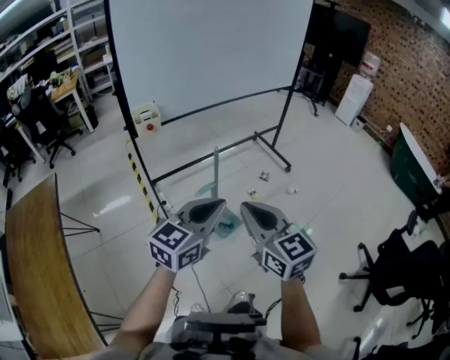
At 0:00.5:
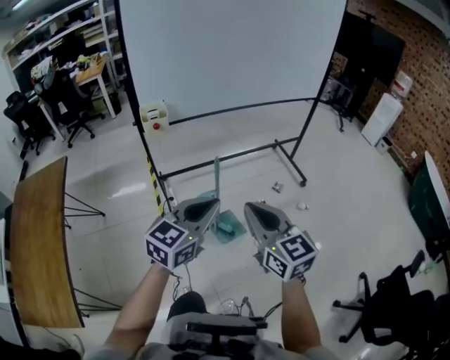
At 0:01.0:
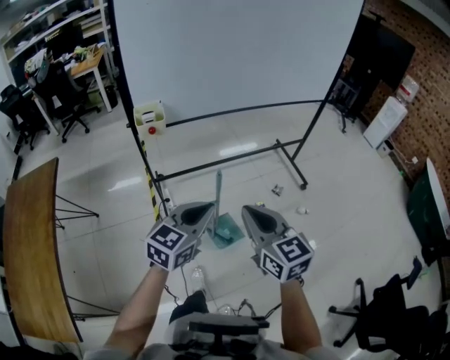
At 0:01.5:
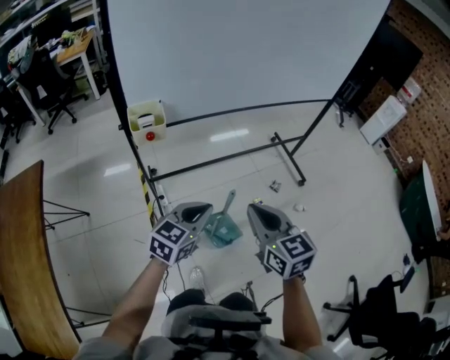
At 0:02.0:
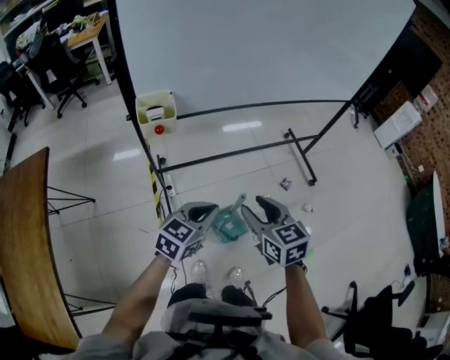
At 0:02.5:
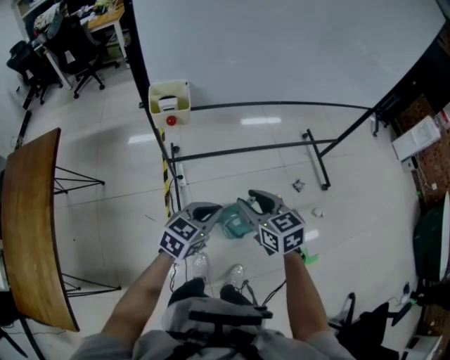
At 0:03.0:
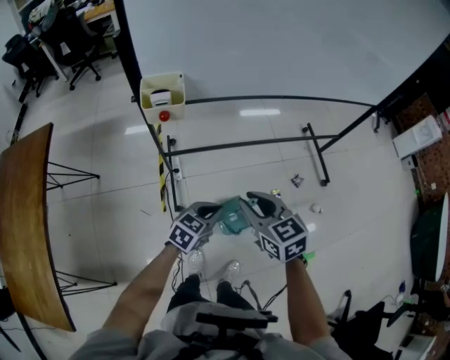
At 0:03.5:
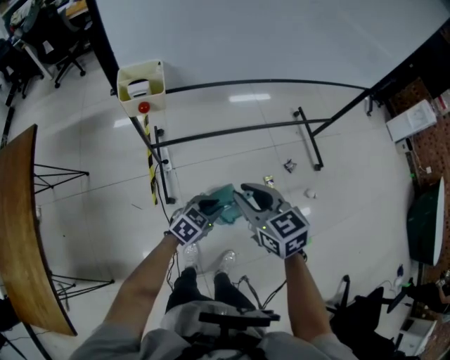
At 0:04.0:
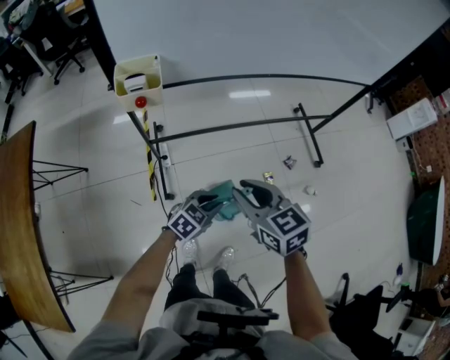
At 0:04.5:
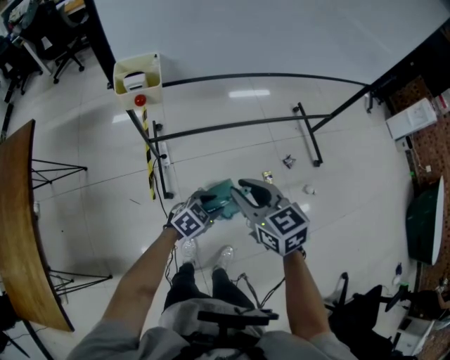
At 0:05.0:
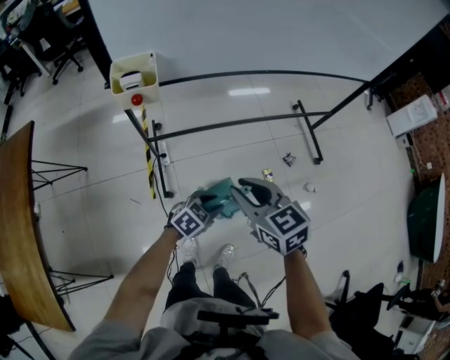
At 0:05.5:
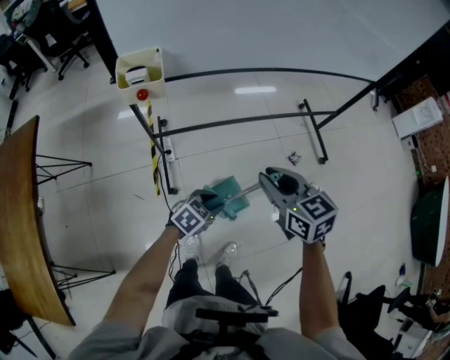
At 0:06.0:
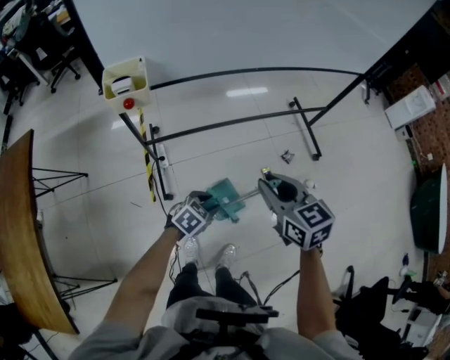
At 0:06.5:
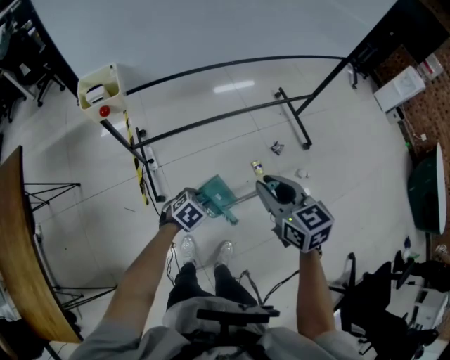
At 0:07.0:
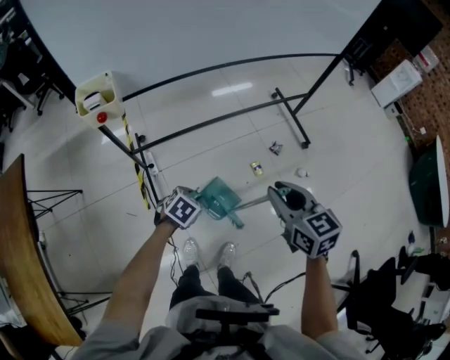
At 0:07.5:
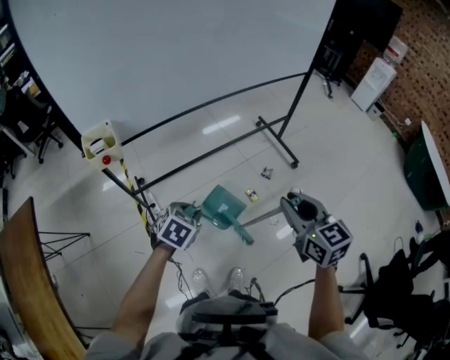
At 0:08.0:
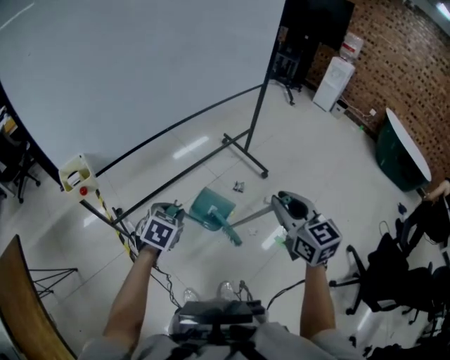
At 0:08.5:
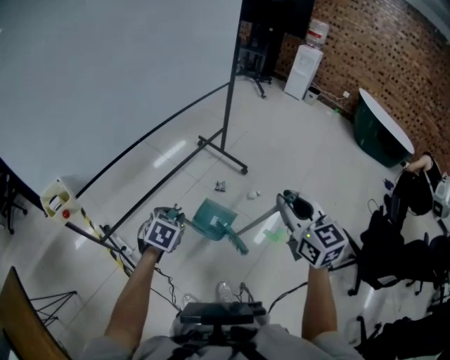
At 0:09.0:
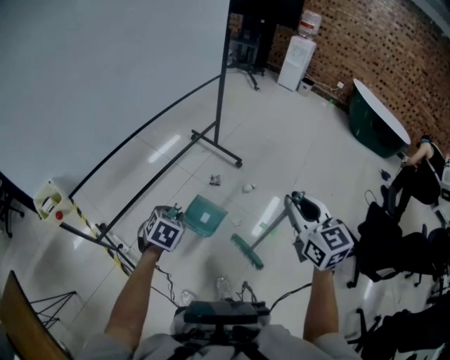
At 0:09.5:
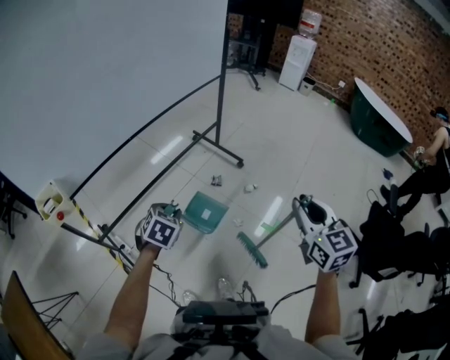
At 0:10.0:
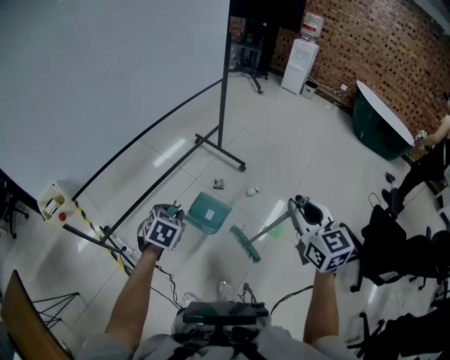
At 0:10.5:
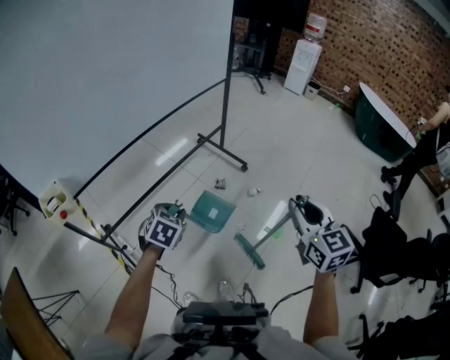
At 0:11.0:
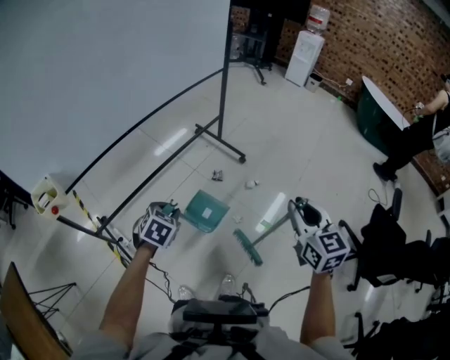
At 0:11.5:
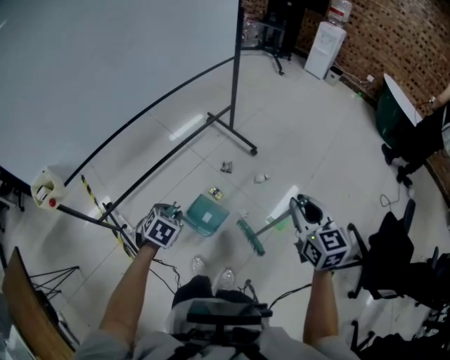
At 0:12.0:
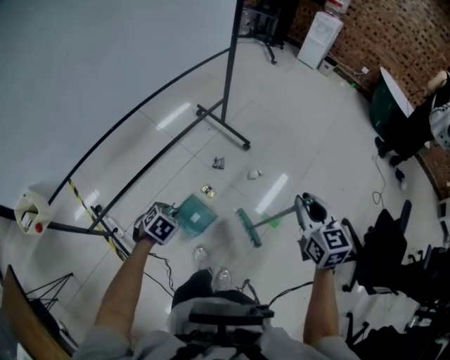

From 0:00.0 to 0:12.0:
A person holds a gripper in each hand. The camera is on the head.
From 0:00.0 to 0:02.0: The two grippers go some 30 cm forward and downward. The right gripper rotates roughly 20 degrees, and opens. Meanwhile the left gripper turns by about 20 degrees.
From 0:02.0 to 0:04.0: The left gripper travels downward by some 20 cm.
From 0:04.0 to 0:06.0: The right gripper shifts about 10 cm to the right.
From 0:06.0 to 0:08.0: The right gripper shifts roughly 25 cm to the right and upward, and rotates roughly 30 degrees, while the left gripper heads upward, covering roughly 20 cm.
From 0:08.0 to 0:10.0: The two grippers go approximately 10 cm to the right.
From 0:10.0 to 0:12.0: The left gripper moves downward and forward, approximately 15 cm, while the right gripper is displaced forward, downward and to the right by some 15 cm.

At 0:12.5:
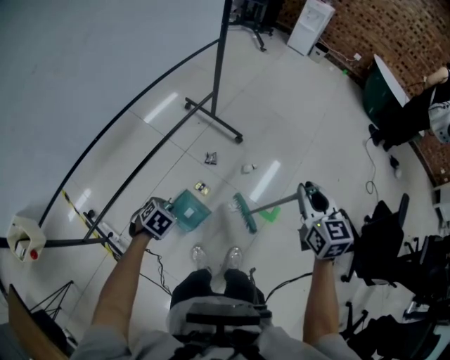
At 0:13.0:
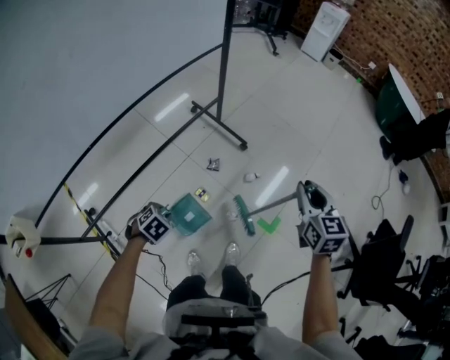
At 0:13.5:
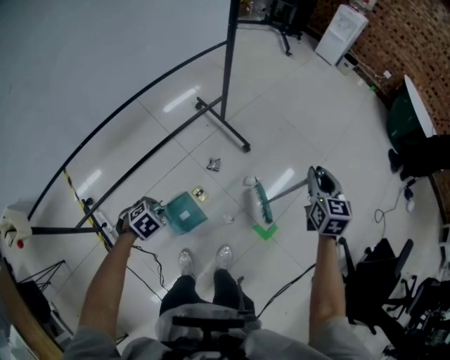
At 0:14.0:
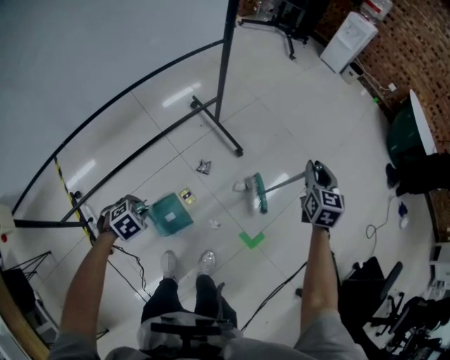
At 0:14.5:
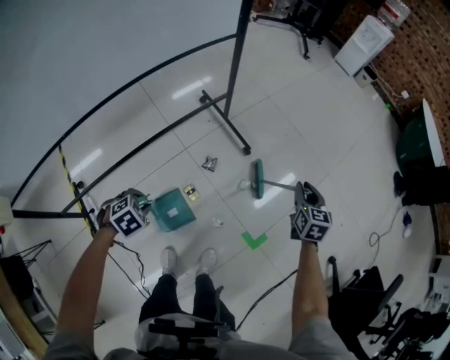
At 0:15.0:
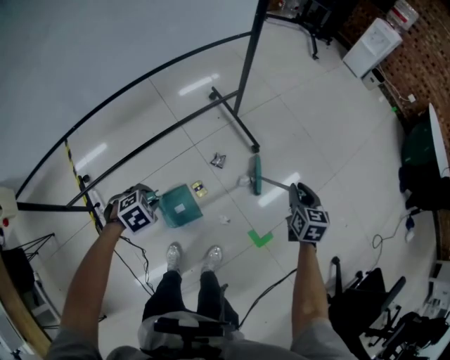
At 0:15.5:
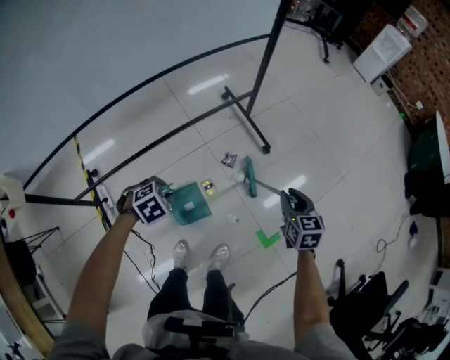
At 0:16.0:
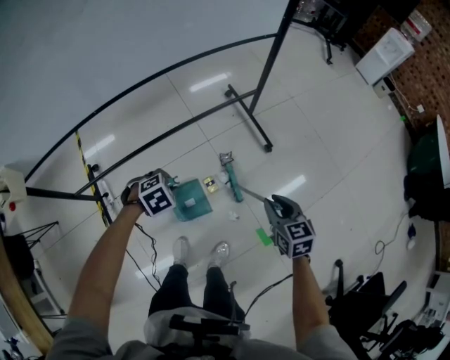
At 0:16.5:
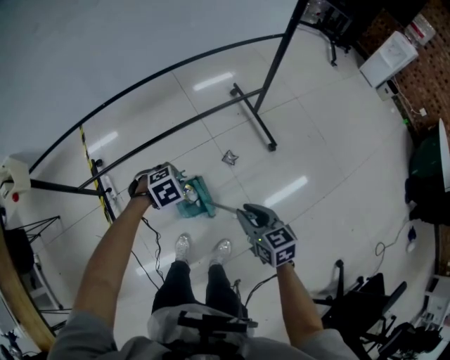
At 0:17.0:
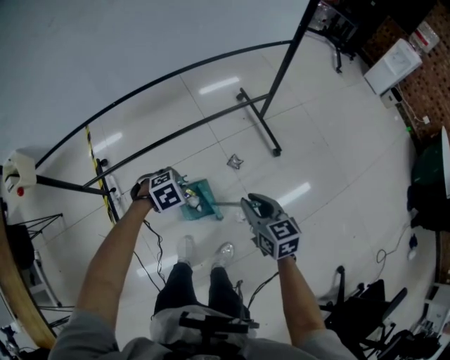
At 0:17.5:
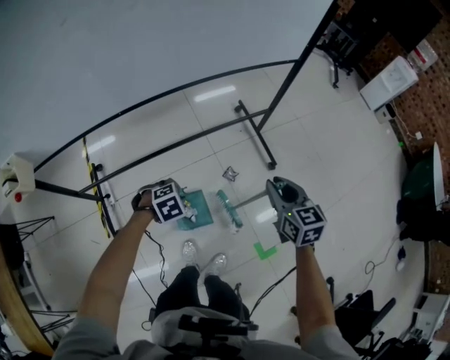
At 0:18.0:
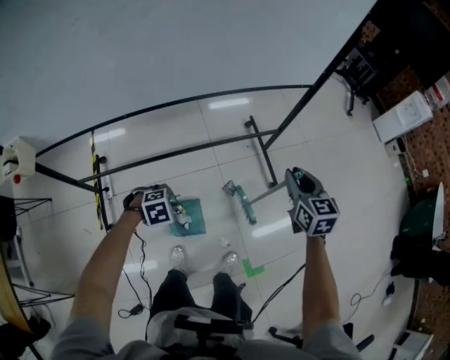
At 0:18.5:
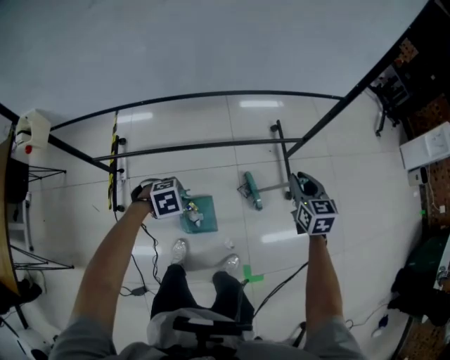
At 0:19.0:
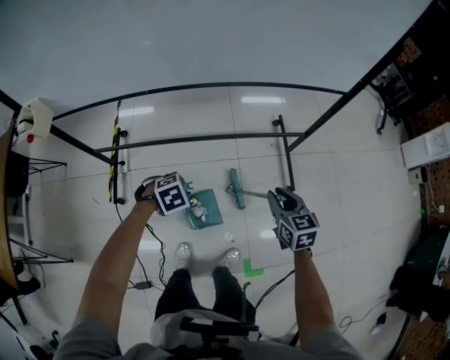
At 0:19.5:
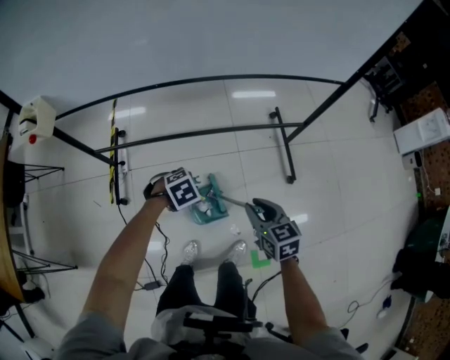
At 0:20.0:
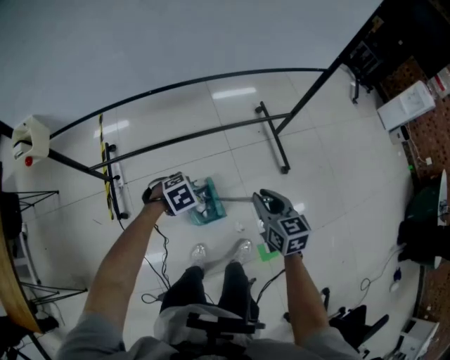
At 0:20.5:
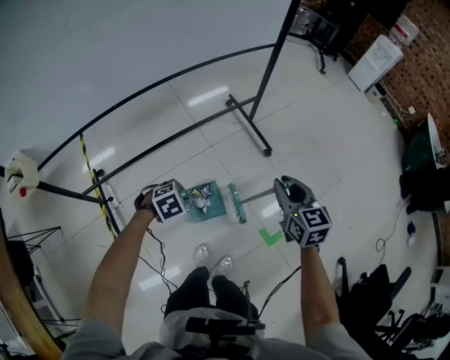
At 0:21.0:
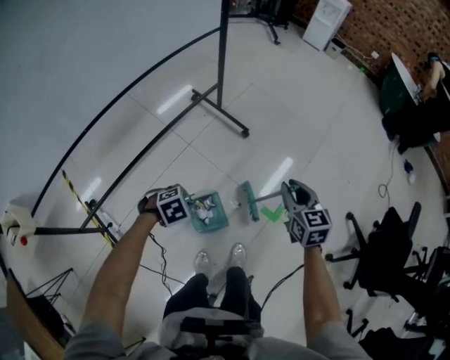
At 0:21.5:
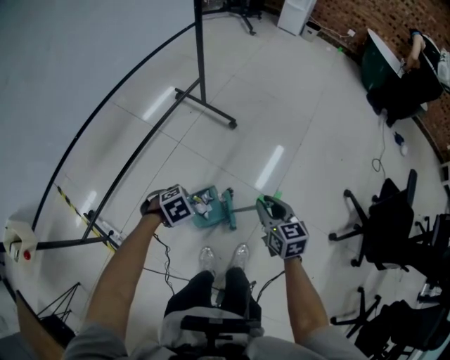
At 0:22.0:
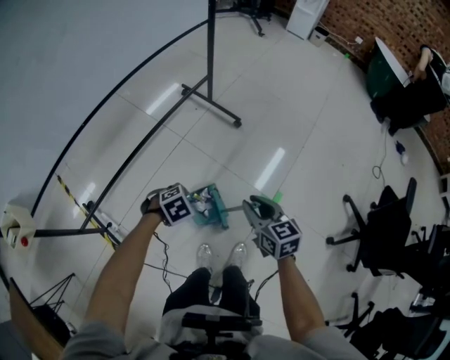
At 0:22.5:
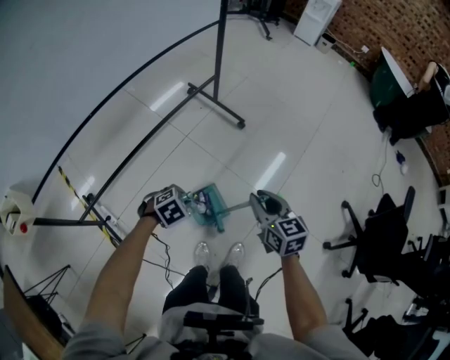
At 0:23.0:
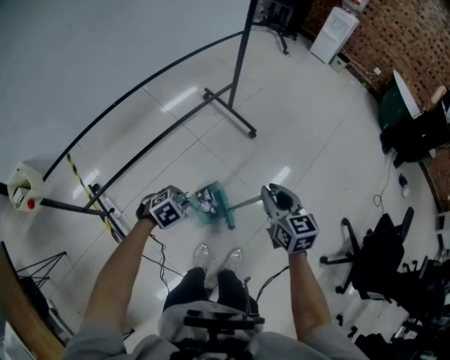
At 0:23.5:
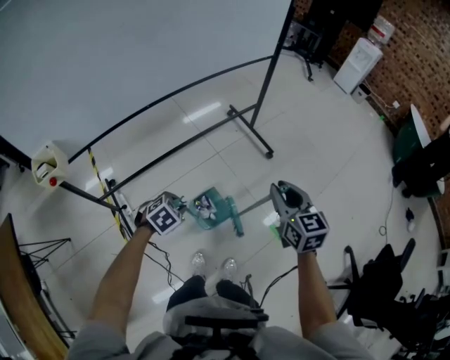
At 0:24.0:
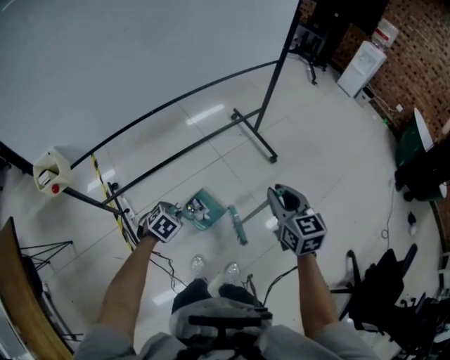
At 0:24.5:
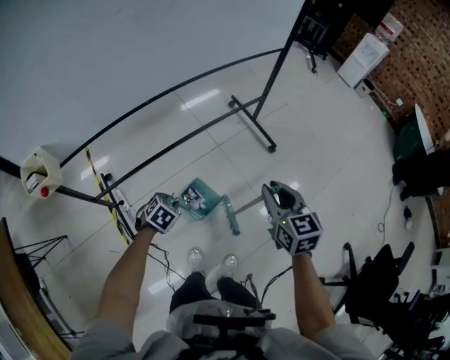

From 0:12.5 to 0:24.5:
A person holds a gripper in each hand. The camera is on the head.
From 0:12.5 to 0:14.5: The left gripper moves some 10 cm; the right gripper shifts by about 35 cm.
From 0:14.5 to 0:16.5: The right gripper ends up about 35 cm from where it was, and swivels some 40 degrees.
From 0:16.5 to 0:18.5: The right gripper moves about 10 cm upward and comes back.
From 0:18.5 to 0:20.5: The left gripper shifts by some 10 cm; the right gripper moves about 25 cm.
From 0:20.5 to 0:22.5: The left gripper changes place by some 10 cm. The right gripper shifts by roughly 20 cm.
From 0:22.5 to 0:24.5: The left gripper ends up roughly 15 cm from where it was, and changes its angle by about 40 degrees. The right gripper changes place by some 15 cm.

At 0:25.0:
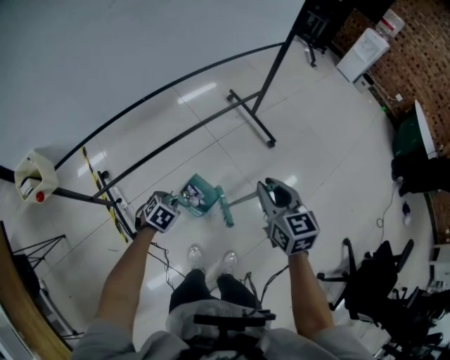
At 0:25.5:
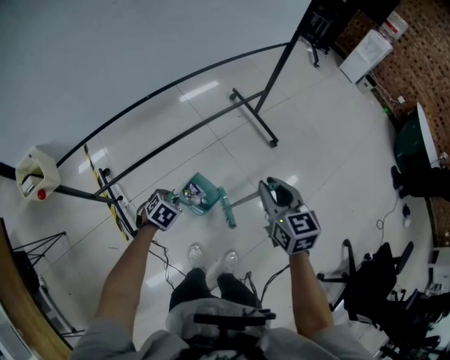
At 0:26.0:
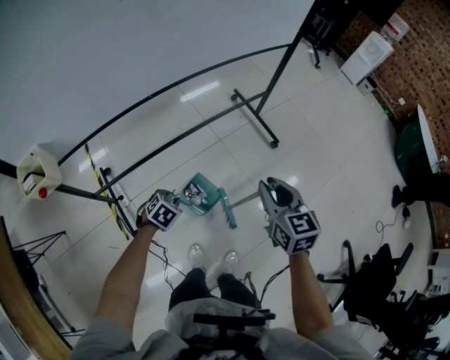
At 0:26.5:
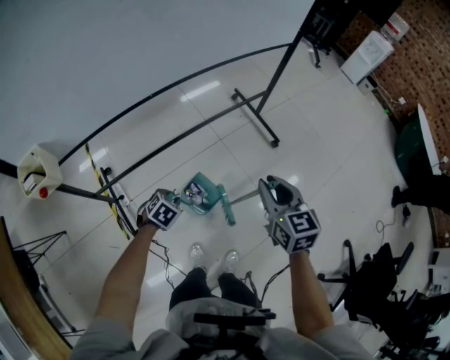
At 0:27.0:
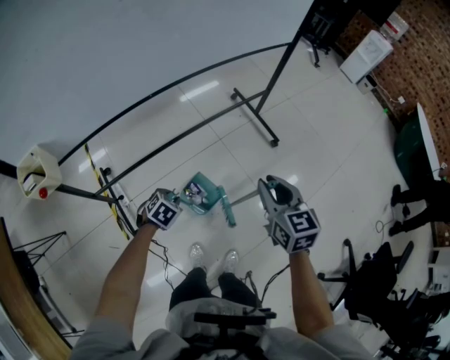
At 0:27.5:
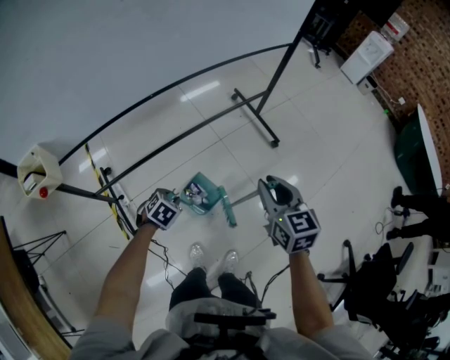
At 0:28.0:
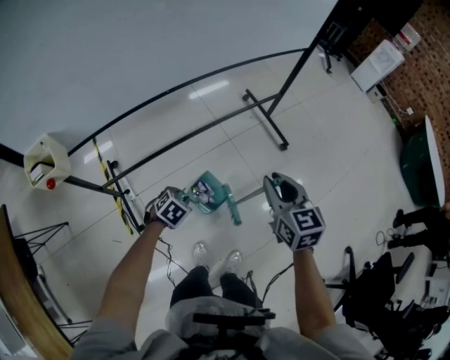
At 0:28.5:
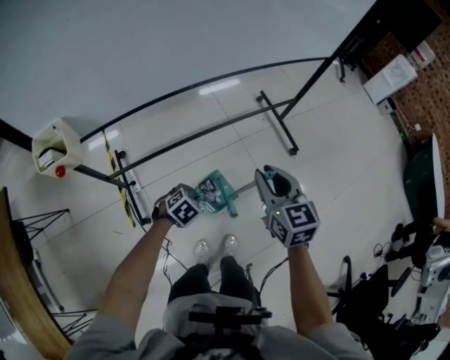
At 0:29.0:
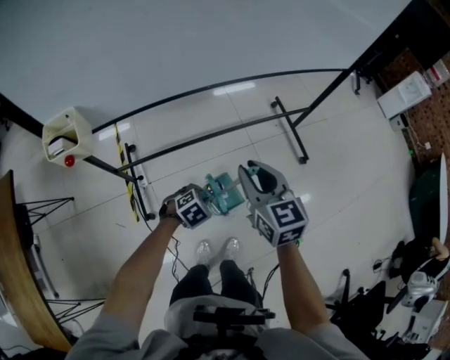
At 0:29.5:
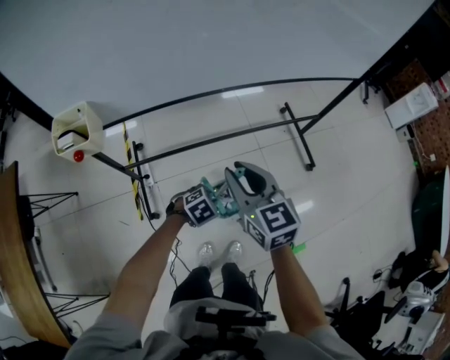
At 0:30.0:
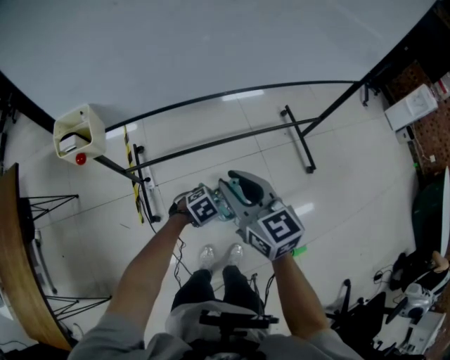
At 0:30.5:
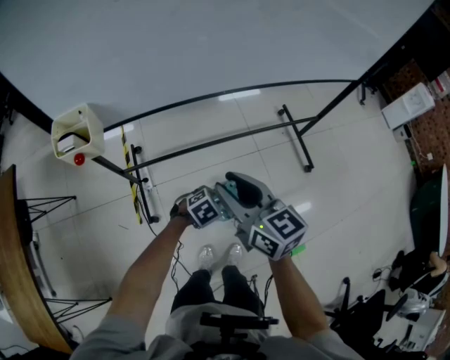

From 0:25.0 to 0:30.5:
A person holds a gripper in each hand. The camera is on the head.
From 0:25.0 to 0:27.0: The grippers make only small movements.
From 0:27.0 to 0:28.5: The right gripper goes approximately 10 cm to the left.
From 0:28.5 to 0:30.5: The right gripper moves to the left, approximately 15 cm, and turns by roughly 30 degrees.
